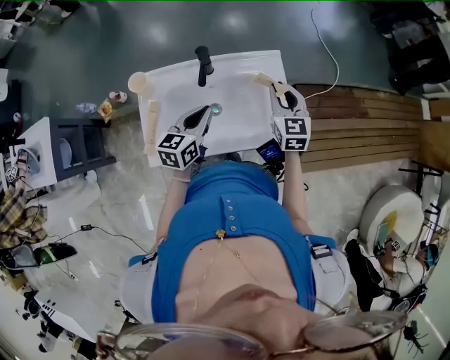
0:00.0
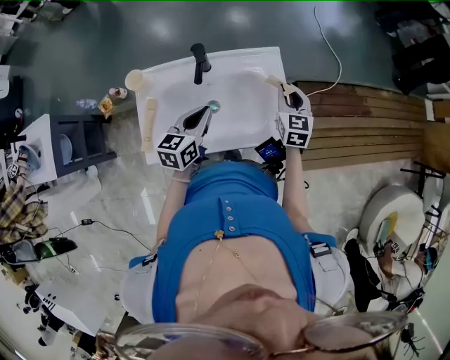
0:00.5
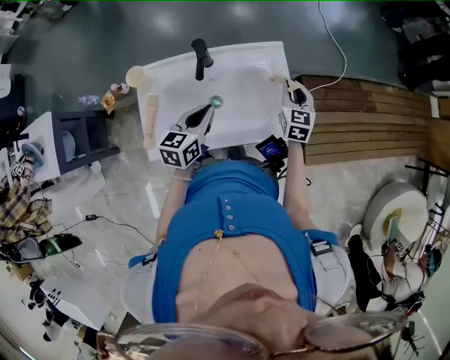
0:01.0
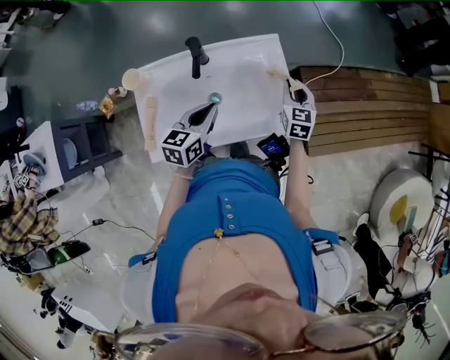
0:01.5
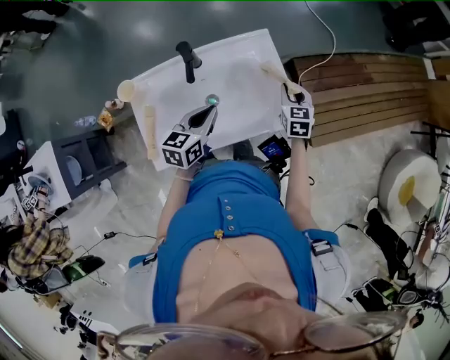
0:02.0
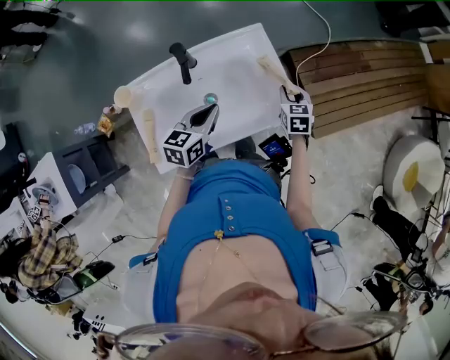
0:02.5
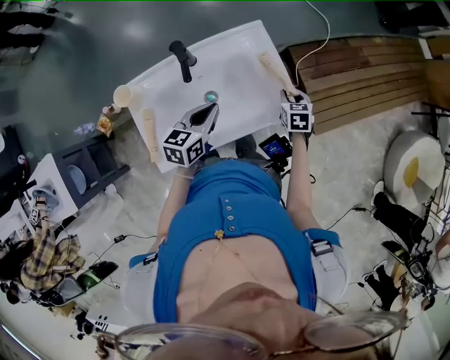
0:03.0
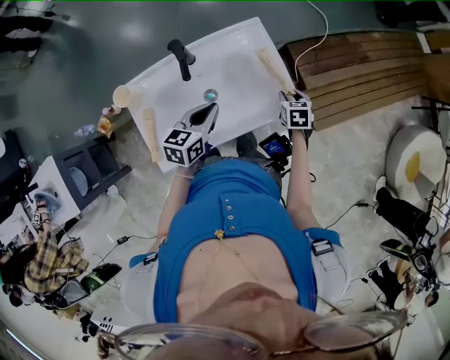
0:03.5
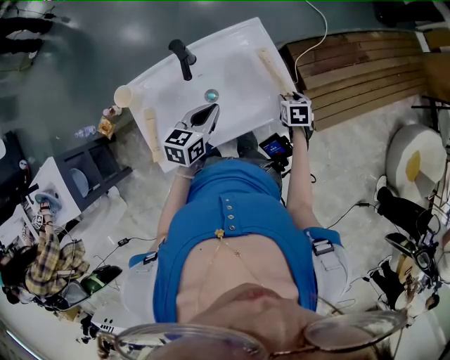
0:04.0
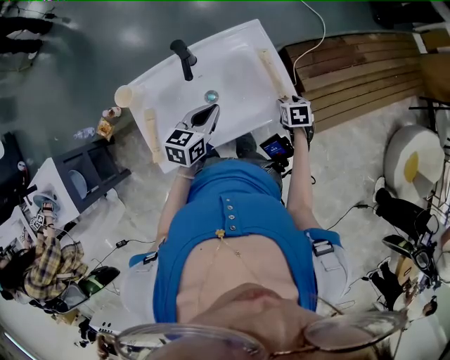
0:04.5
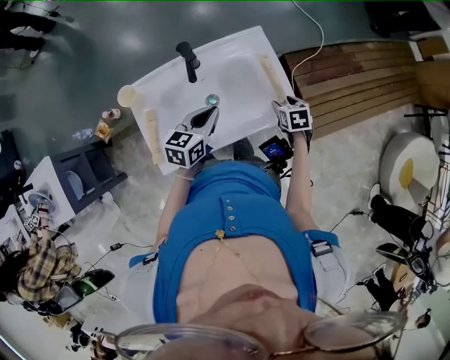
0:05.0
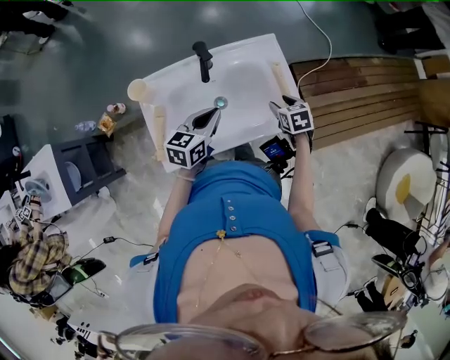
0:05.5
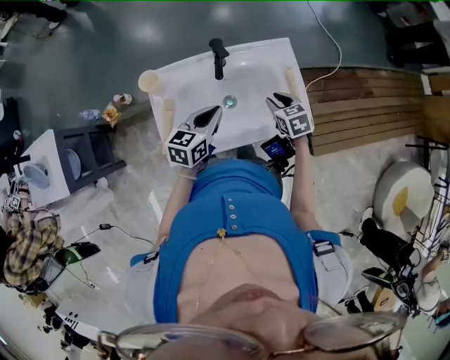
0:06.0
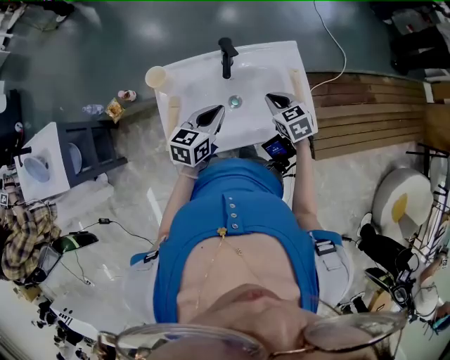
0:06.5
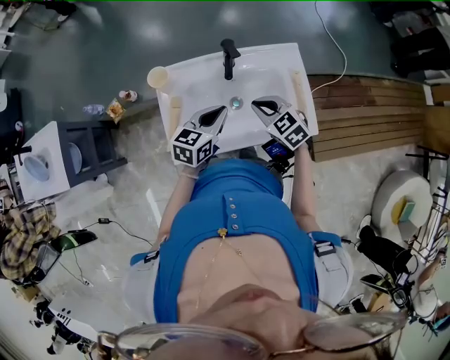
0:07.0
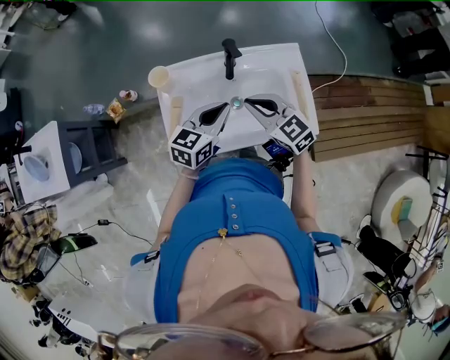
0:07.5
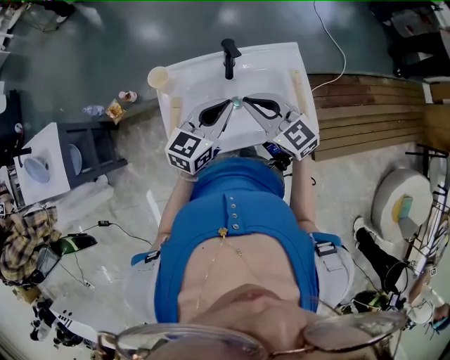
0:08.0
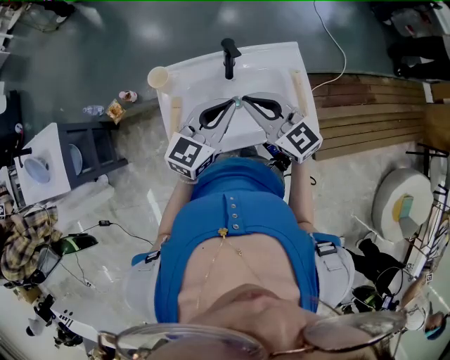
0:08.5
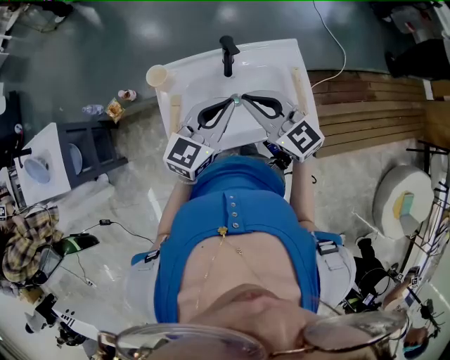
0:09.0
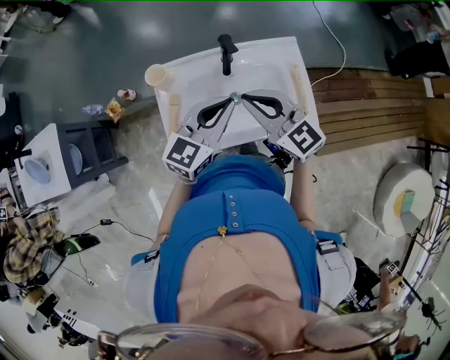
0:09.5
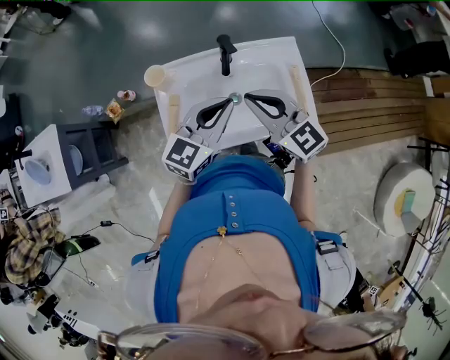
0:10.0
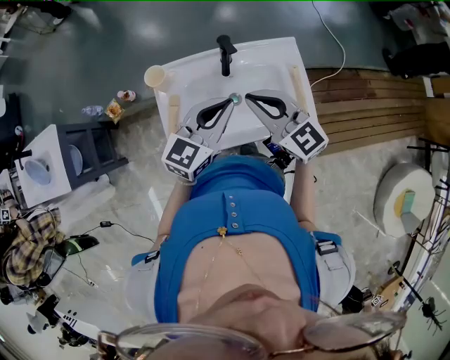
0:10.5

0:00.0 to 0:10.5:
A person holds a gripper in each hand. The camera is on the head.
0:00.0 to 0:02.0: The right gripper goes about 15 cm downward and to the right, and changes its angle by some 20 degrees.
0:02.0 to 0:04.0: The right gripper moves downward and backward, roughly 10 cm, rotates roughly 30 degrees, and opens up.
0:04.0 to 0:06.5: The left gripper goes approximately 10 cm to the left, while the right gripper goes some 25 cm to the left and upward, swivels some 40 degrees, and closes up.
0:06.5 to 0:08.5: The right gripper shifts roughly 20 cm upward and to the left, and tilts its fingers about 40 degrees upward; the left gripper travels upward by some 10 cm, and swivels approximately 20 degrees.
0:08.5 to 0:10.5: The grippers make only small movements.

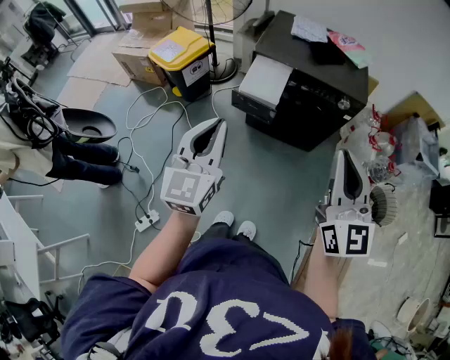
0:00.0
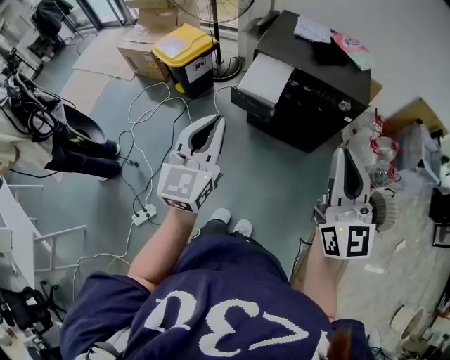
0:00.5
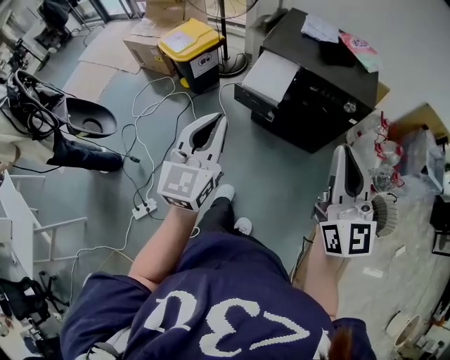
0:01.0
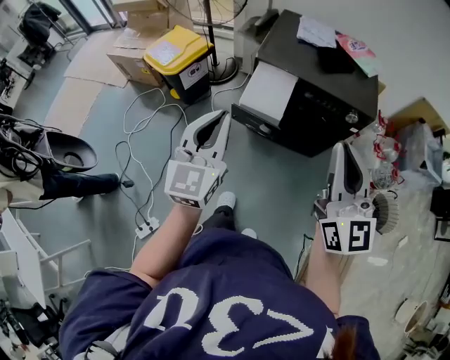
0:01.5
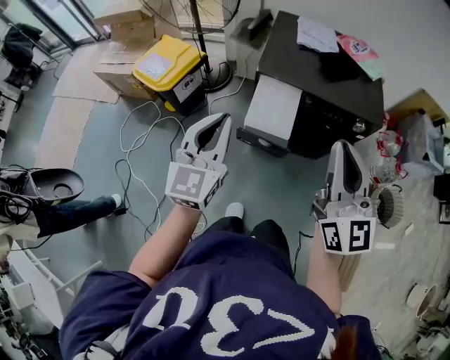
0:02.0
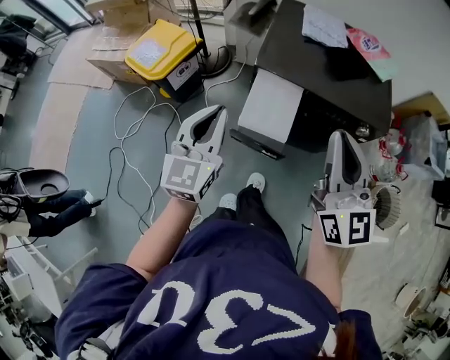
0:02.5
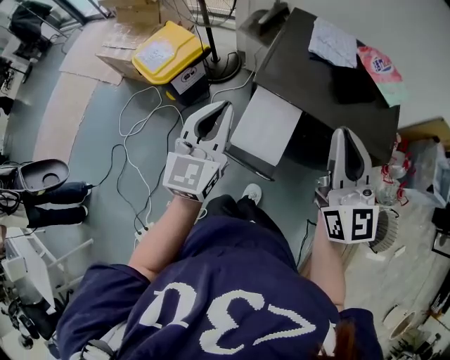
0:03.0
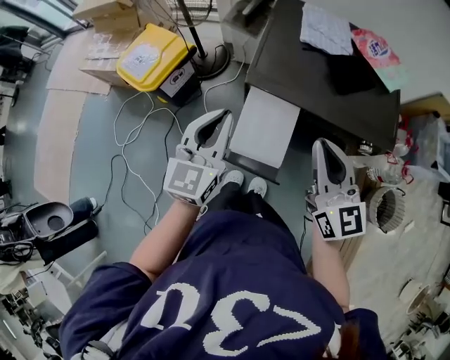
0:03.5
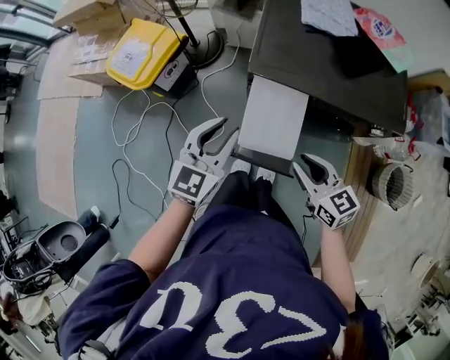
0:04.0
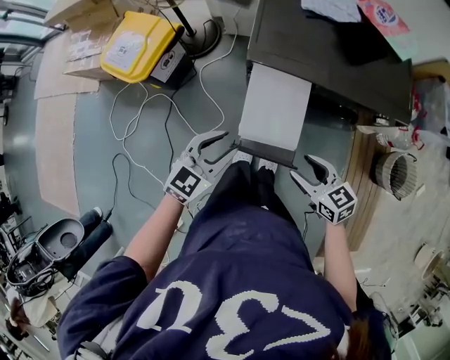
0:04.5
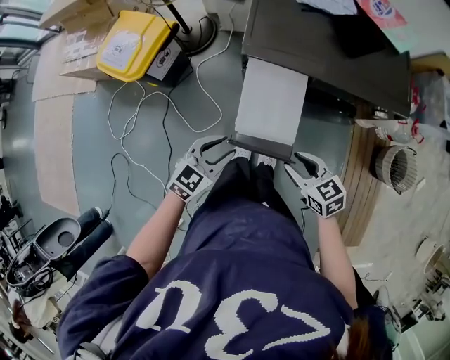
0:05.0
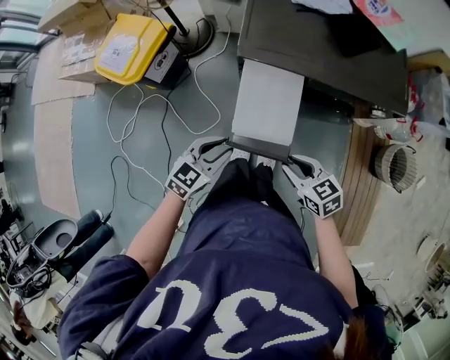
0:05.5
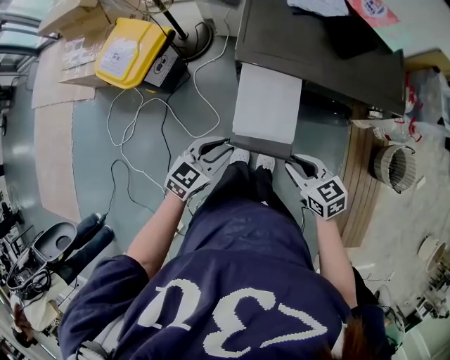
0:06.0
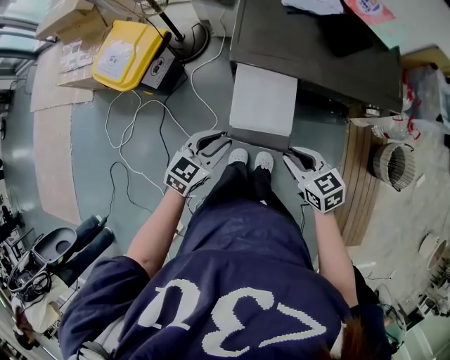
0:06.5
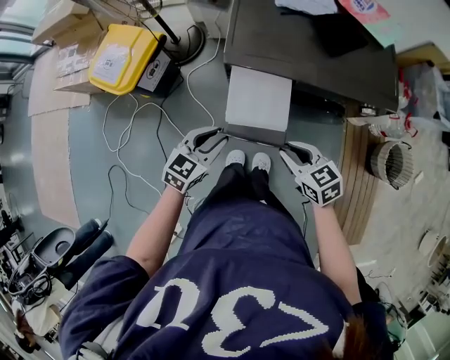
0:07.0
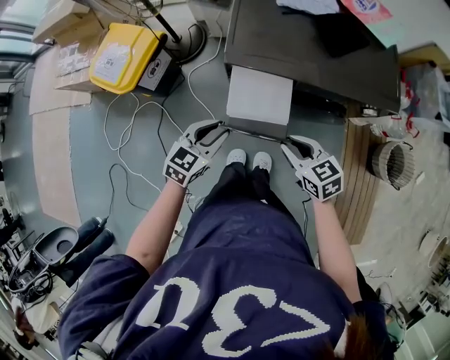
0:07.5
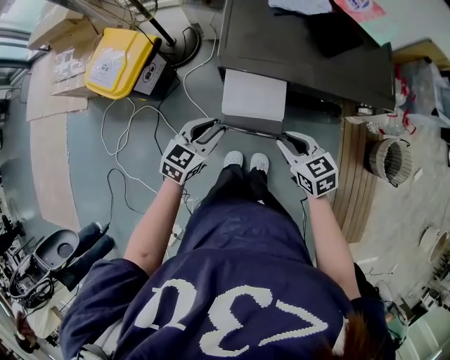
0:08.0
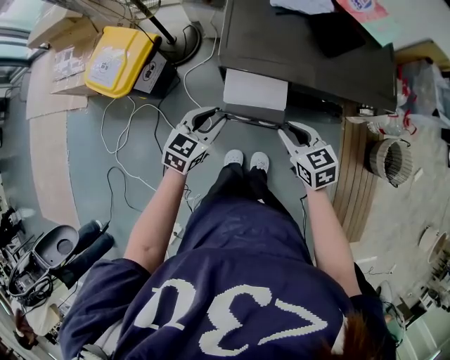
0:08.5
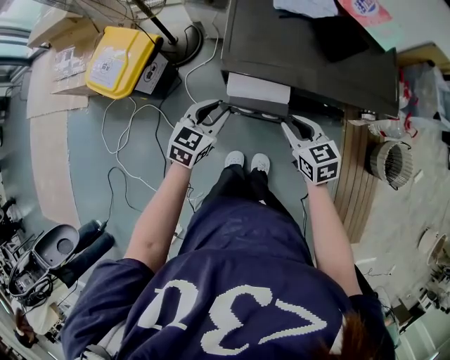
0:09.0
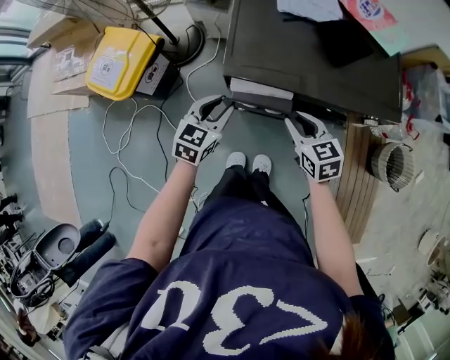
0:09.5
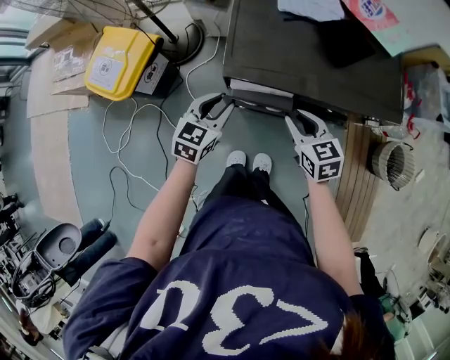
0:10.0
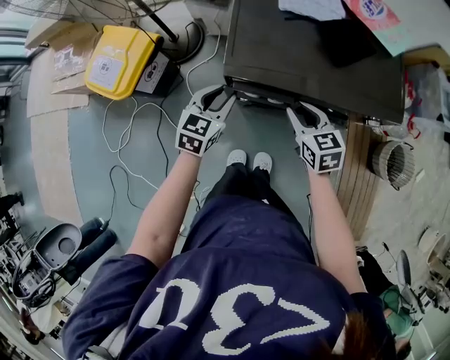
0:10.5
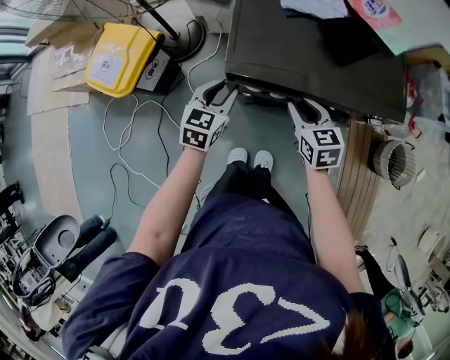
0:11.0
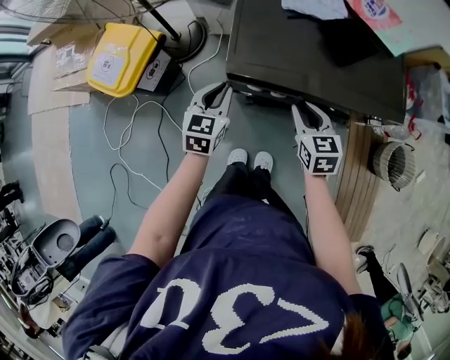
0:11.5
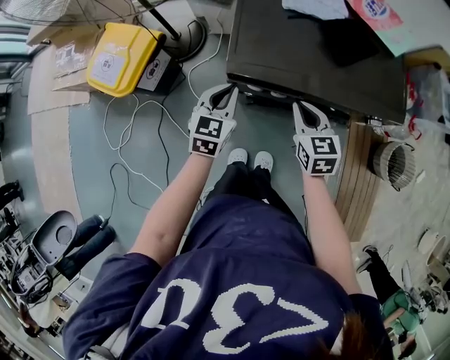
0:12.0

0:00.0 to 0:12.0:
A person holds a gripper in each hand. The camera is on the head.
0:00.0 to 0:02.0: The two grippers go approximately 25 cm forward.
0:02.0 to 0:04.0: The left gripper moves forward and downward, approximately 25 cm, and opens its fingers, while the right gripper heads downward and forward, covering approximately 35 cm, angles its fingers downward, by approximately 30 degrees, and opens.
0:04.0 to 0:06.0: The left gripper travels downward and backward by some 15 cm, and changes its angle by roughly 30 degrees, while the right gripper heads downward, covering about 5 cm, and opens, then closes again.
0:06.0 to 0:08.0: Both grippers move forward, roughly 10 cm.
0:08.0 to 0:10.0: Both grippers move forward, roughly 10 cm.
0:10.0 to 0:12.0: The right gripper closes, while the left gripper closes its fingers.

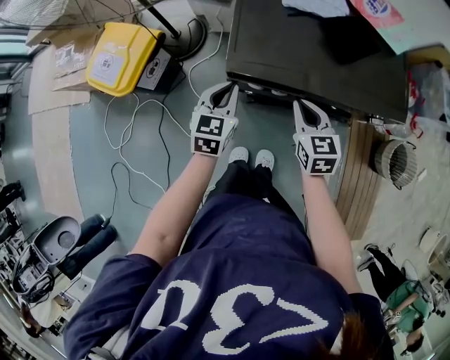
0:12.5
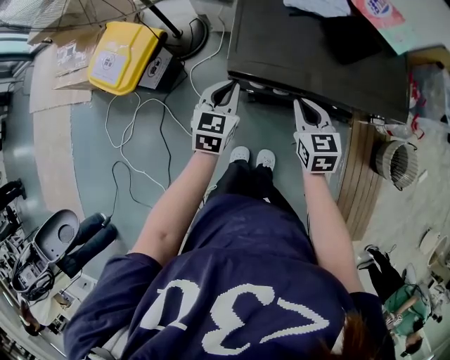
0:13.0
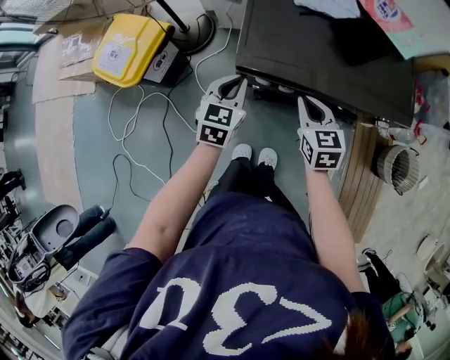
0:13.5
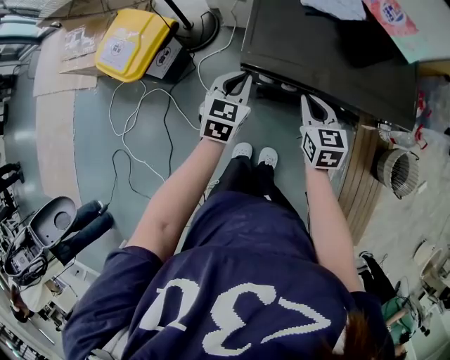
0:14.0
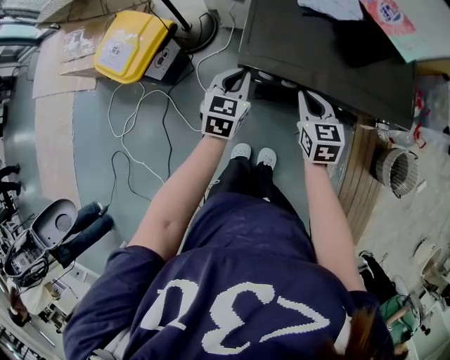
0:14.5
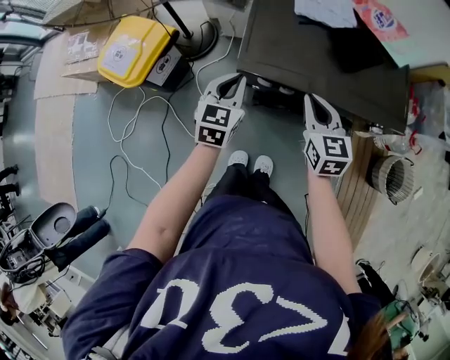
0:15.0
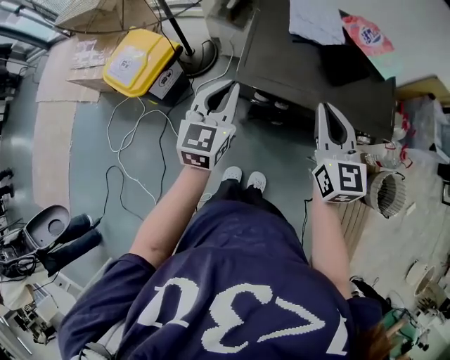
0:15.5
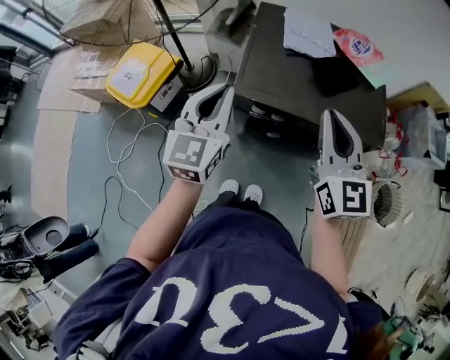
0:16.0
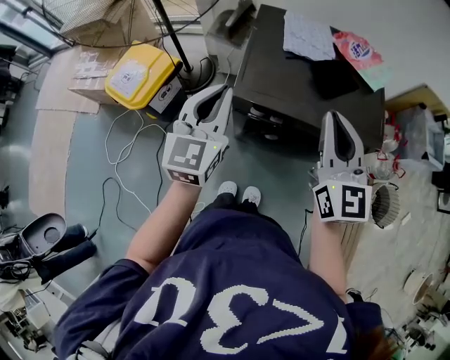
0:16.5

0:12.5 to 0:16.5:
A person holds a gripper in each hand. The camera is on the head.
0:12.5 to 0:14.5: There are only small adjustments of the grippers.
0:14.5 to 0:16.5: The grippers both shift upward by about 30 cm. The right gripper points its fingers about 30 degrees further upward. The left gripper turns by about 20 degrees.
